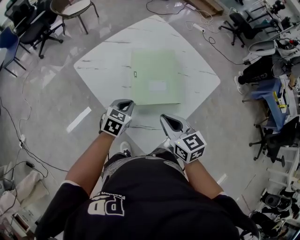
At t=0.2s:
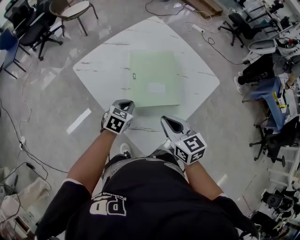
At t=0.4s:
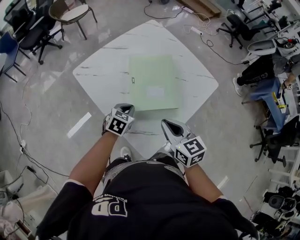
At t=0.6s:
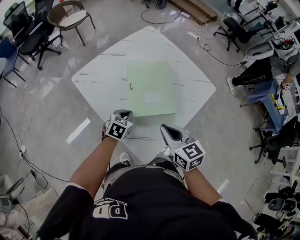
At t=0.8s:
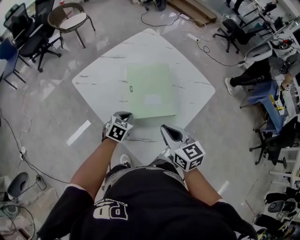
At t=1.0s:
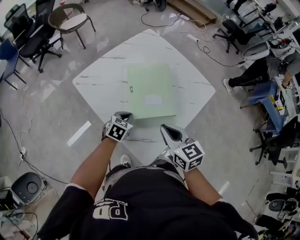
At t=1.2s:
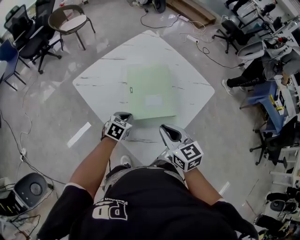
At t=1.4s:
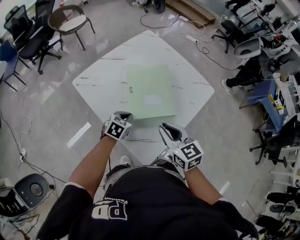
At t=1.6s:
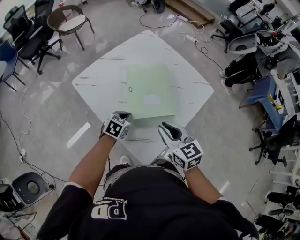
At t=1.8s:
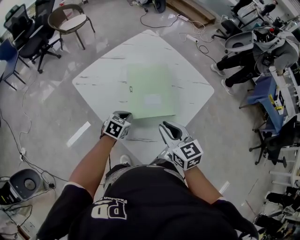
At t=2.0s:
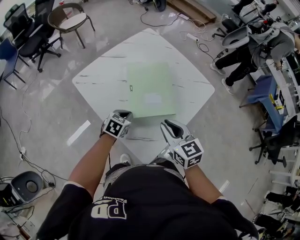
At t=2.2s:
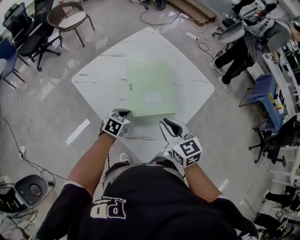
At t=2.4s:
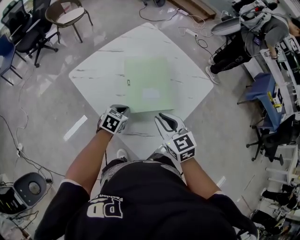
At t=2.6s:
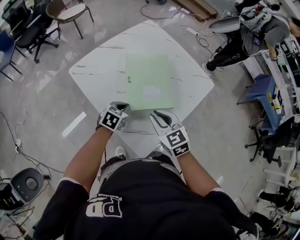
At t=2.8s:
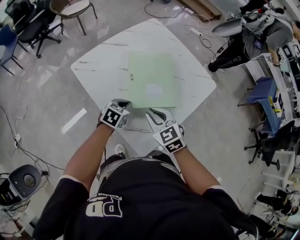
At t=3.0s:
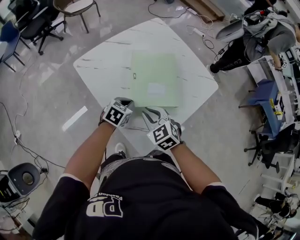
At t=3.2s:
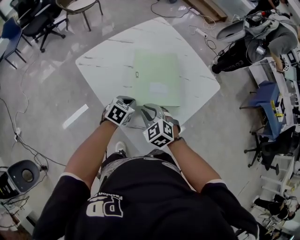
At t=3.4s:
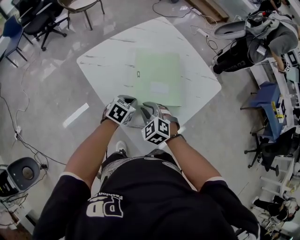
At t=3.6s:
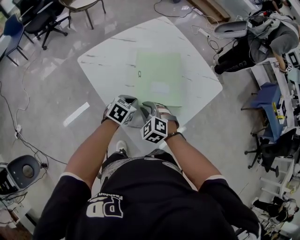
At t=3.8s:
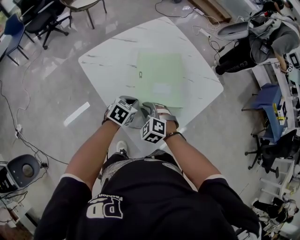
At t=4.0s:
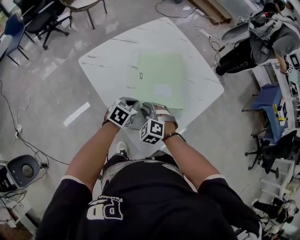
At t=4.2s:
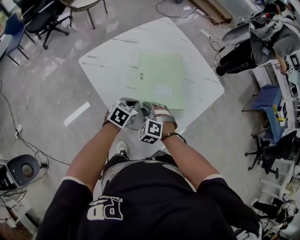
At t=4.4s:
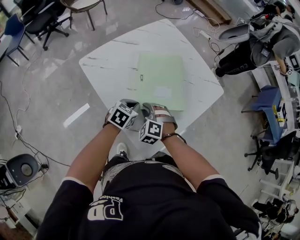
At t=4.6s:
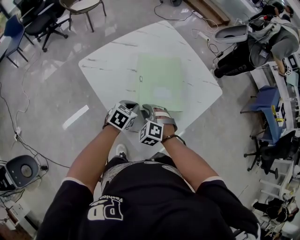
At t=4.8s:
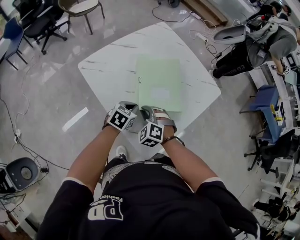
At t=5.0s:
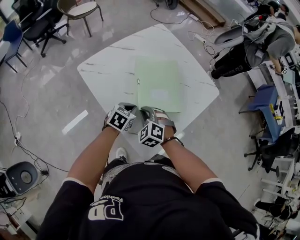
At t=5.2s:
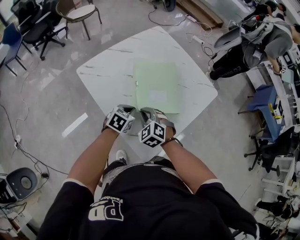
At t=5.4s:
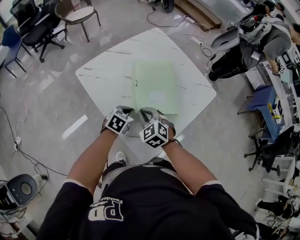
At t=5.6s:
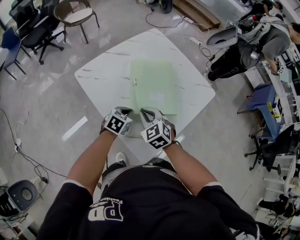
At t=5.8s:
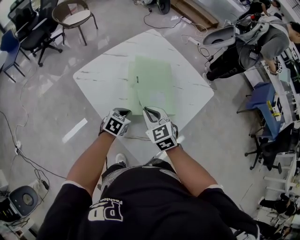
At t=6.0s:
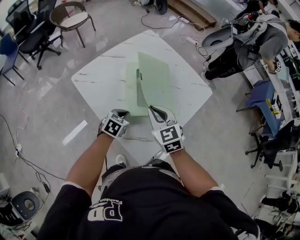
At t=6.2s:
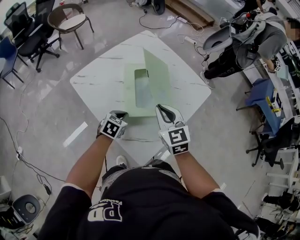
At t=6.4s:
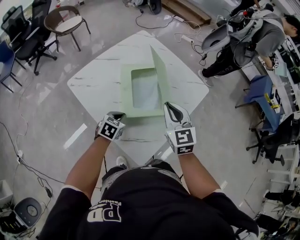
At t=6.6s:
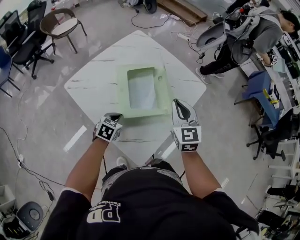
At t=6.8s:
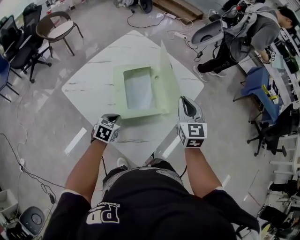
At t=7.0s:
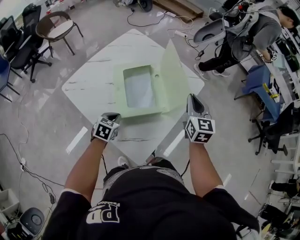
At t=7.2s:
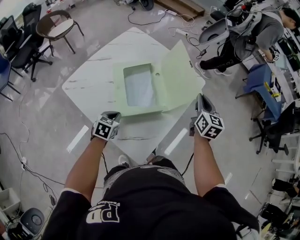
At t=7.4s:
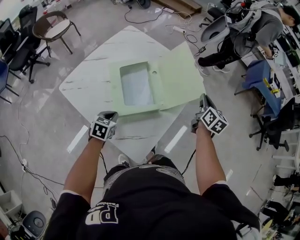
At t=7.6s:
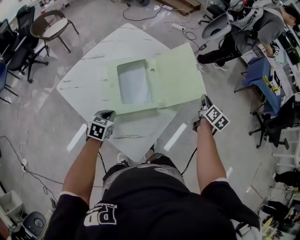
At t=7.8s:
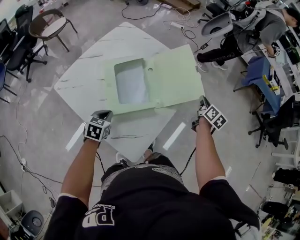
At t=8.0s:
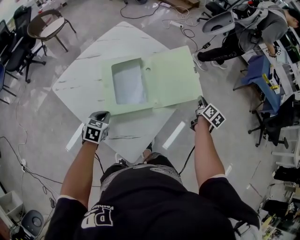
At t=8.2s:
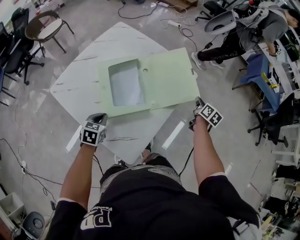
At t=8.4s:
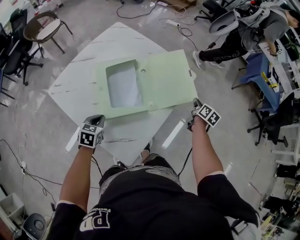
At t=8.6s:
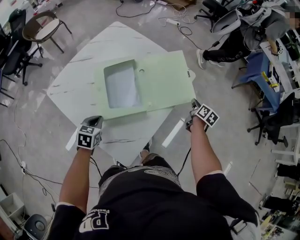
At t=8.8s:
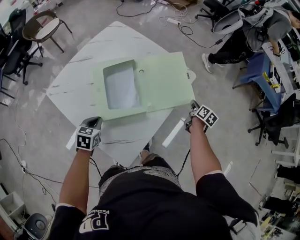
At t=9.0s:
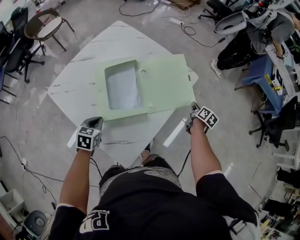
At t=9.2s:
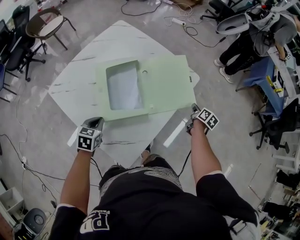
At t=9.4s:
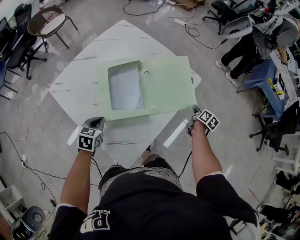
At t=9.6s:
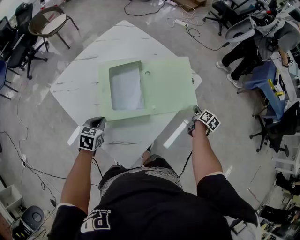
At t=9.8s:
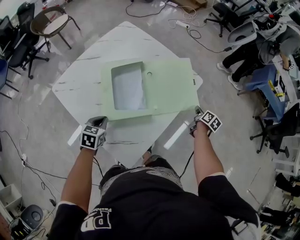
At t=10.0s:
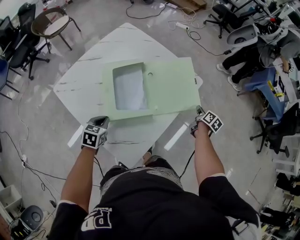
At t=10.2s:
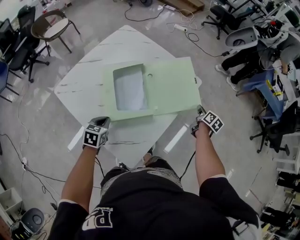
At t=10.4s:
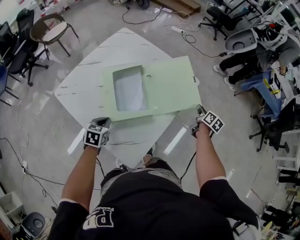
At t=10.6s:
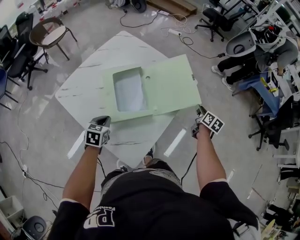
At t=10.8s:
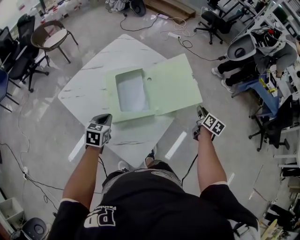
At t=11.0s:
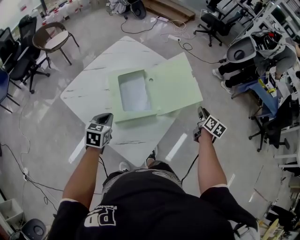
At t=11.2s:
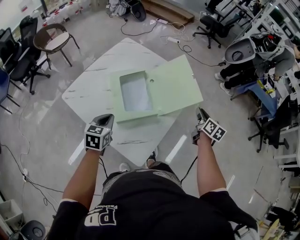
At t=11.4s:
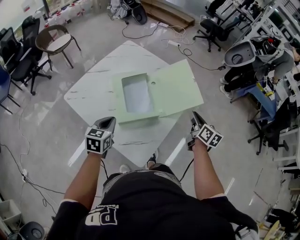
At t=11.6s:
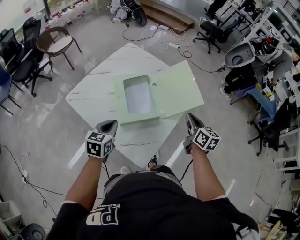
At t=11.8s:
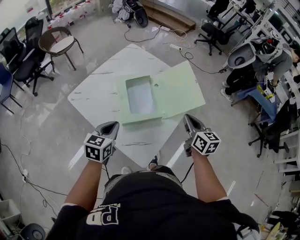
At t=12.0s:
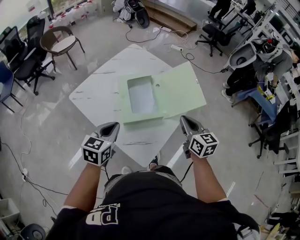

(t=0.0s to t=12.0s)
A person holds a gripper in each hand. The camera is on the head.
t=0.0s - t=1.6s: The left gripper travels downward by about 5 cm.
t=1.6s - t=3.0s: The right gripper travels downward and to the left by approximately 10 cm, and swivels approximately 30 degrees.
t=3.0s - t=4.4s: The right gripper travels downward by roughly 10 cm, and turns by roughly 30 degrees.
t=4.4s - t=6.0s: The right gripper moves upward and to the right, about 15 cm, and rotates around the line of its fingers by some 40 degrees, clockwise from behind.
t=6.0s - t=7.6s: The right gripper is displaced to the right and forward by approximately 40 cm, and twists some 50 degrees clockwise, seen from behind.
t=7.6s - t=9.0s: The right gripper goes roughly 15 cm downward.
t=9.0s - t=10.4s: The right gripper is displaced upward by about 5 cm.
t=10.4s - t=12.0s: The right gripper shifts about 35 cm to the left, upward and backward, and changes its angle by about 40 degrees, while the left gripper moves upward, roughly 15 cm, and swivels about 20 degrees.

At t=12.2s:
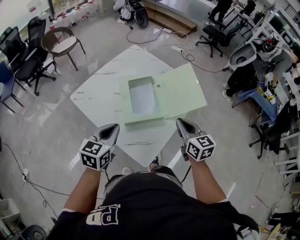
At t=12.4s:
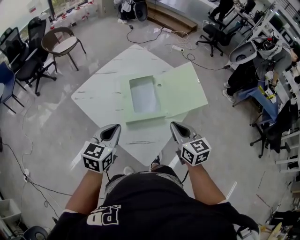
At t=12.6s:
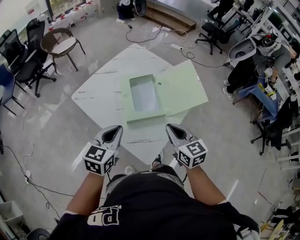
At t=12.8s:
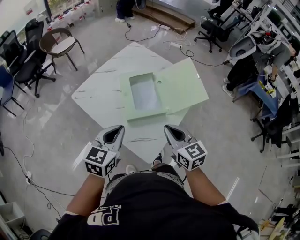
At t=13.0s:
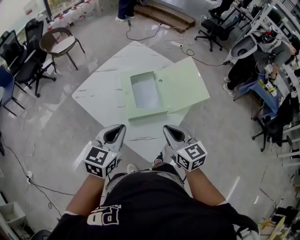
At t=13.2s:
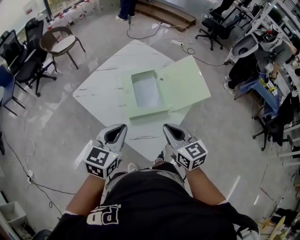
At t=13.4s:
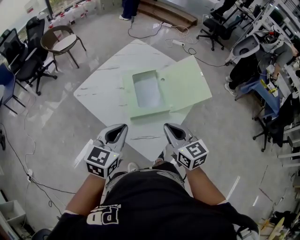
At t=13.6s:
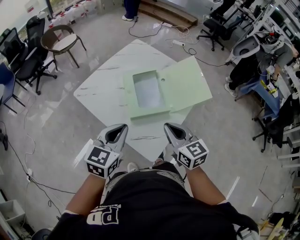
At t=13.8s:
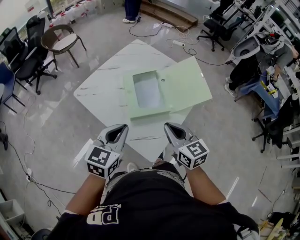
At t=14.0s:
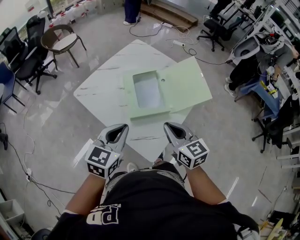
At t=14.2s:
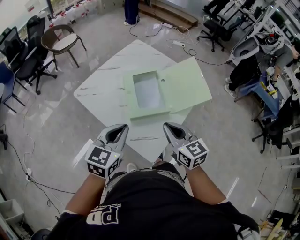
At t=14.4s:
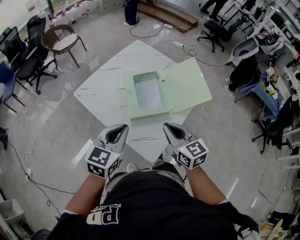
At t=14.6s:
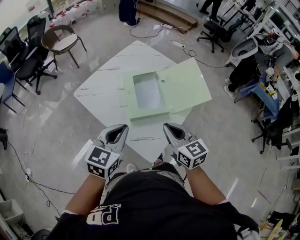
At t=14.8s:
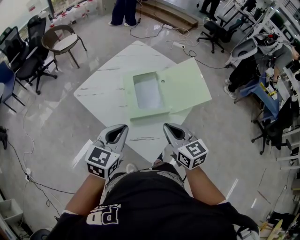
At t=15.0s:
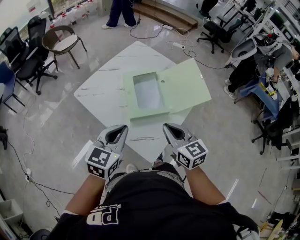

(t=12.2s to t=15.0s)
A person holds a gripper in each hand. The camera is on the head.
t=12.2s - t=13.6s: The right gripper moves to the left and backward, roughly 10 cm. The left gripper moves about 5 cm.
t=13.6s - t=15.0s: Both grippers stay put.

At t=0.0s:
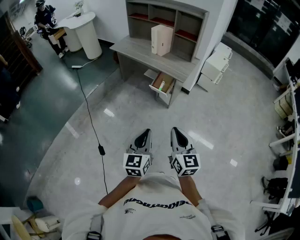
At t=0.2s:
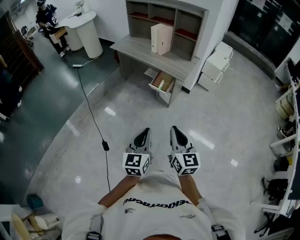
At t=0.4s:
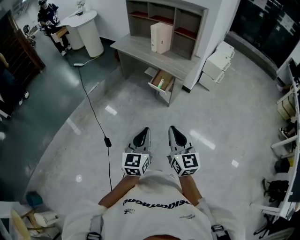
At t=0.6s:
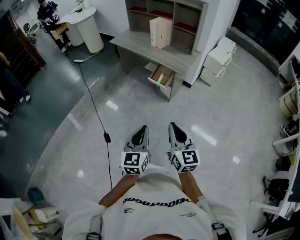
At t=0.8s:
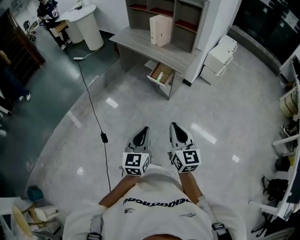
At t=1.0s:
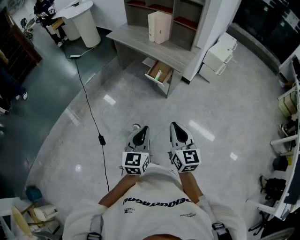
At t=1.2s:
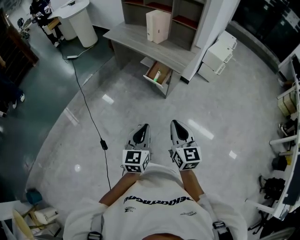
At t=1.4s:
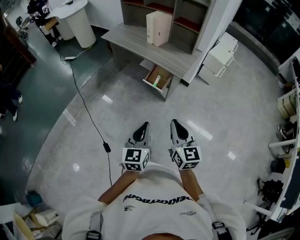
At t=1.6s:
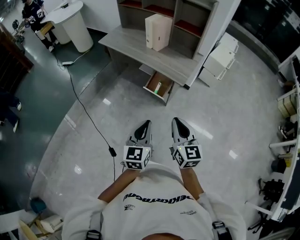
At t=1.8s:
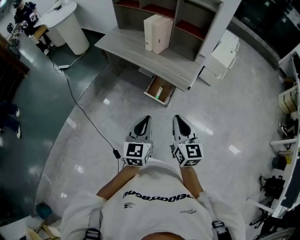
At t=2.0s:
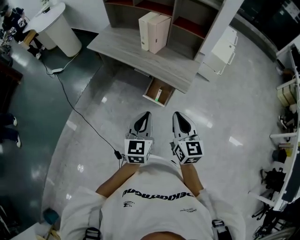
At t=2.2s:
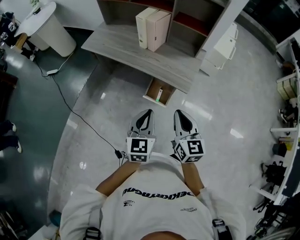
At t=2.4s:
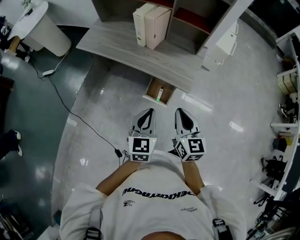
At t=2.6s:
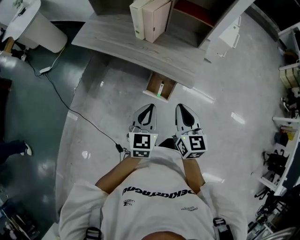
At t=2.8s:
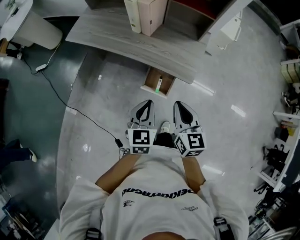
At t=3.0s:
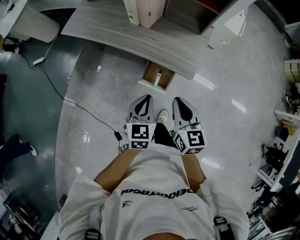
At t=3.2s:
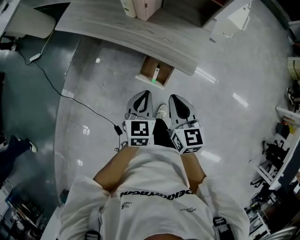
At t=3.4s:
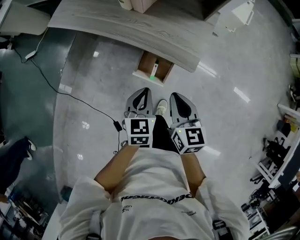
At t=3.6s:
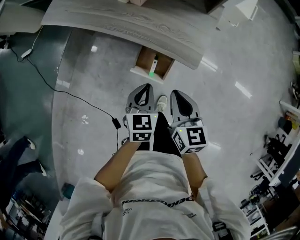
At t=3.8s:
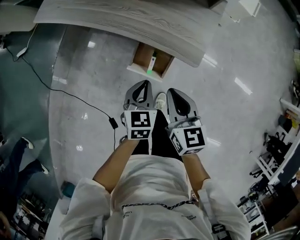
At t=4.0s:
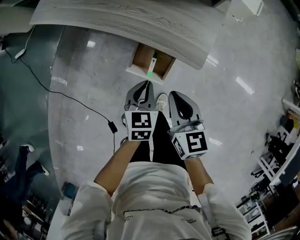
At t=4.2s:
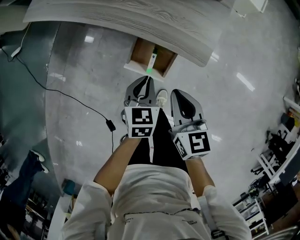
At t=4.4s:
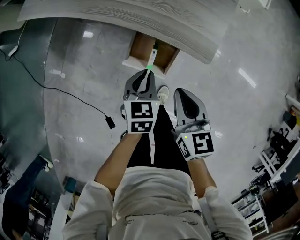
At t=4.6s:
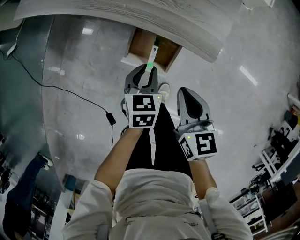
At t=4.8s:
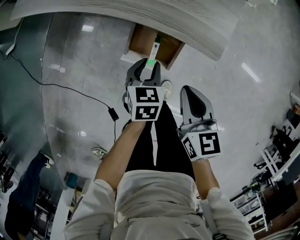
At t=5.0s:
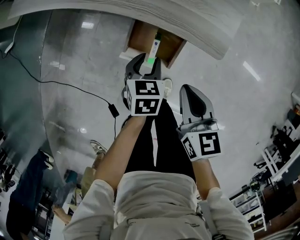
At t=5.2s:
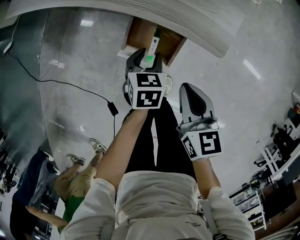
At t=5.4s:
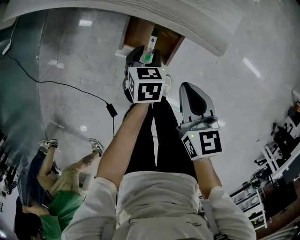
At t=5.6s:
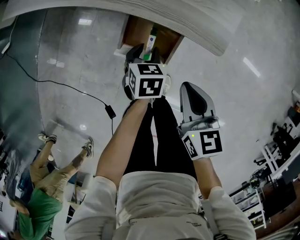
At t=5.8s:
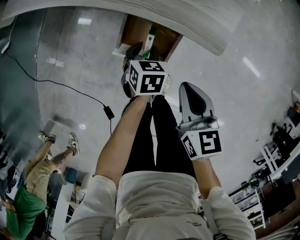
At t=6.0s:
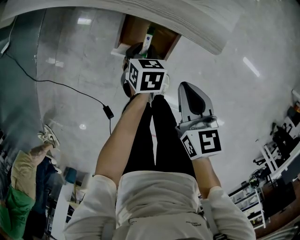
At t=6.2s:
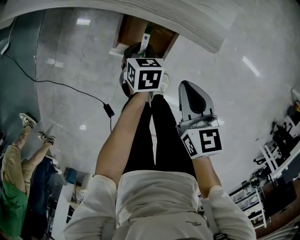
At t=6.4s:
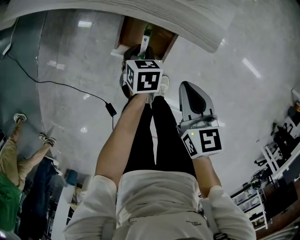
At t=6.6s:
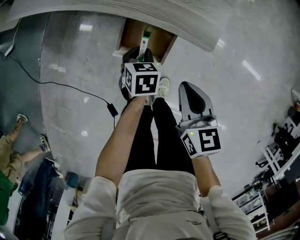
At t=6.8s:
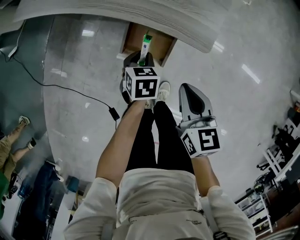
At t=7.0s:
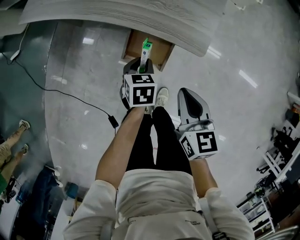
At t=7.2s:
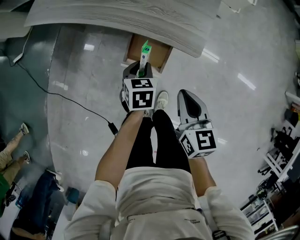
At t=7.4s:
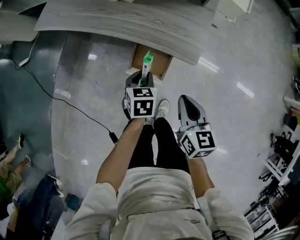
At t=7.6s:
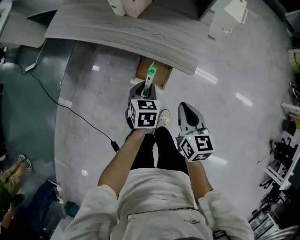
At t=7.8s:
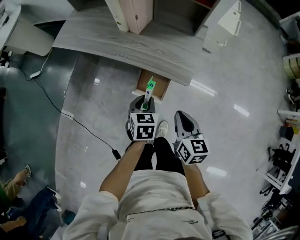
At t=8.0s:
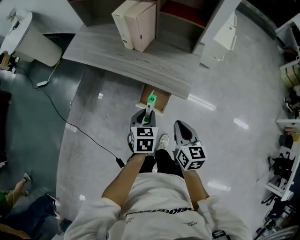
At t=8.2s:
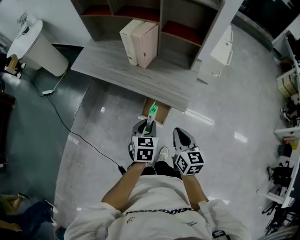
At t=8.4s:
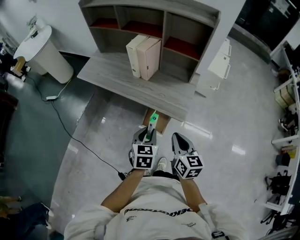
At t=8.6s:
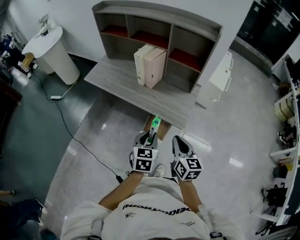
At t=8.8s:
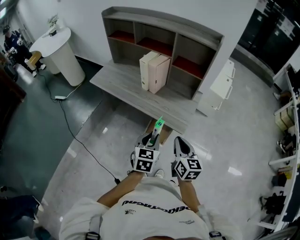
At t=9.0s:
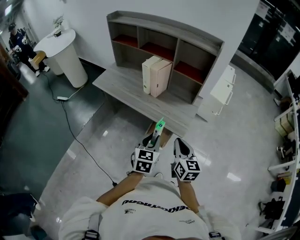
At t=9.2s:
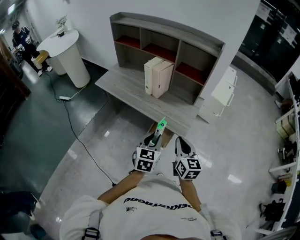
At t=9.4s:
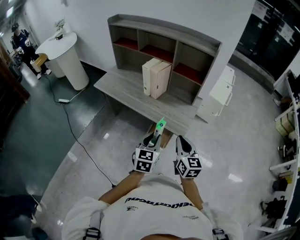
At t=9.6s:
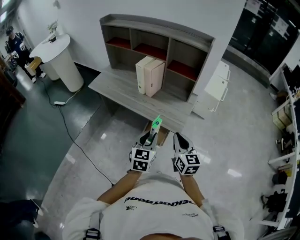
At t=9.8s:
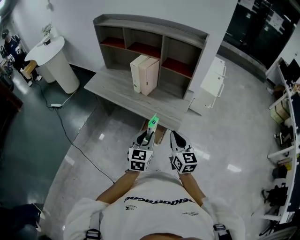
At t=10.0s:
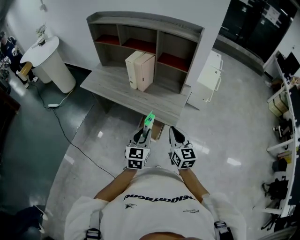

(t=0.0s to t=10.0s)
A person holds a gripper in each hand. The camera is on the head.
t=0.0s - t=1.4s: Both grippers travel together forward and to the right, some 15 cm.
t=1.4s - t=2.8s: Both grippers move forward, some 40 cm. The left gripper changes its angle by roughly 20 degrees.
t=2.8s - t=4.2s: Both grippers move downward, some 20 cm.
t=4.2s - t=5.8s: The right gripper shifts approximately 10 cm downward; the left gripper shifts some 15 cm downward, and opens its fingers.
t=5.8s - t=7.2s: Both grippers travel together upward, approximately 10 cm.
t=7.2s - t=8.6s: The grippers both shift upward by about 30 cm. The left gripper swivels roughly 20 degrees.
t=8.6s - t=10.0s: The grippers move only a little.
